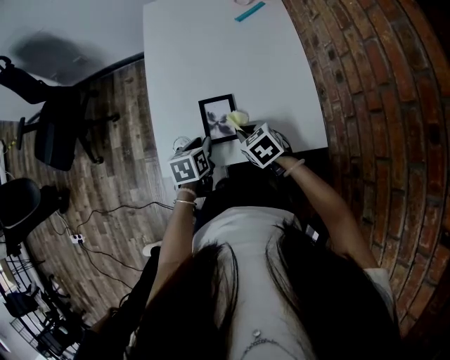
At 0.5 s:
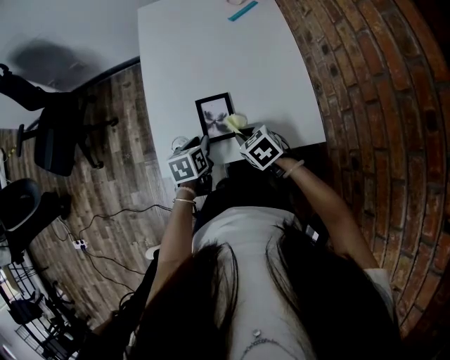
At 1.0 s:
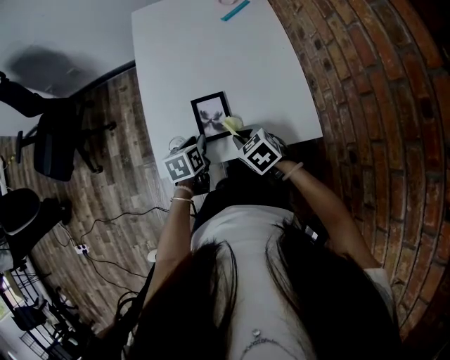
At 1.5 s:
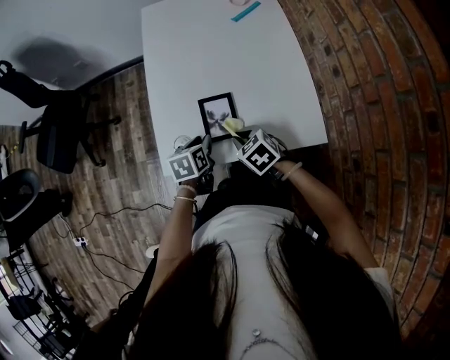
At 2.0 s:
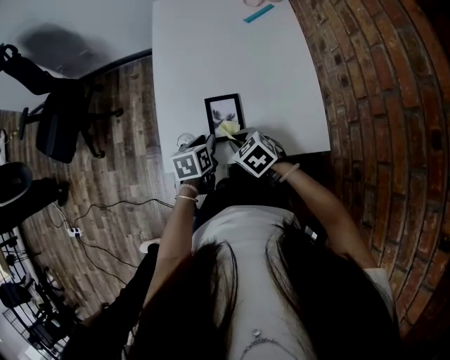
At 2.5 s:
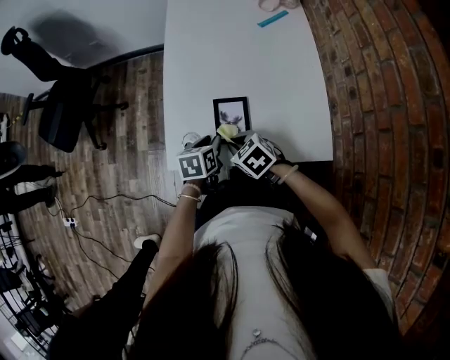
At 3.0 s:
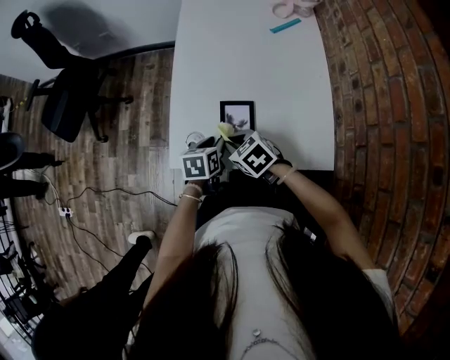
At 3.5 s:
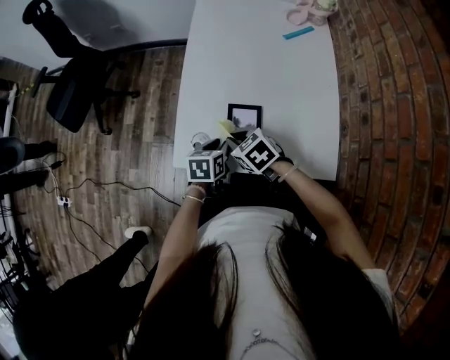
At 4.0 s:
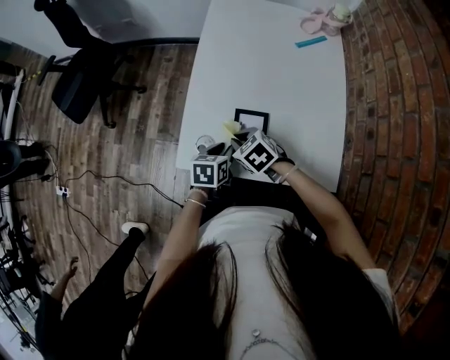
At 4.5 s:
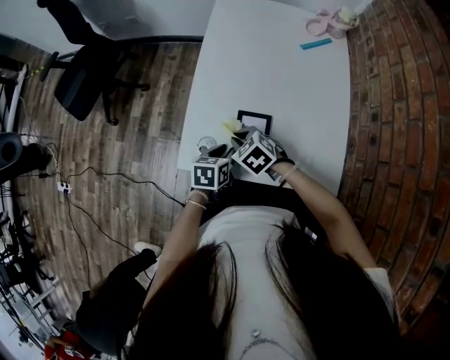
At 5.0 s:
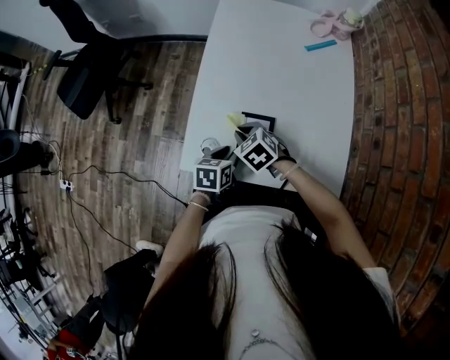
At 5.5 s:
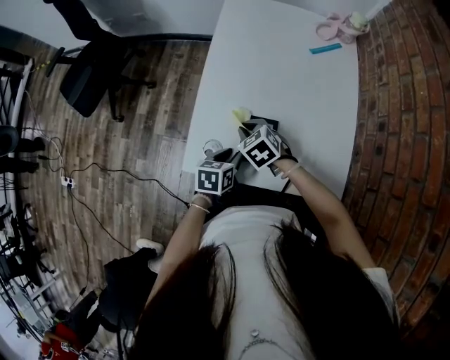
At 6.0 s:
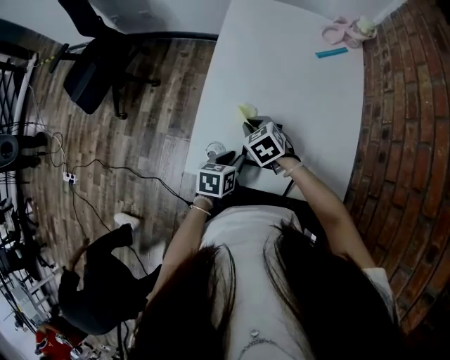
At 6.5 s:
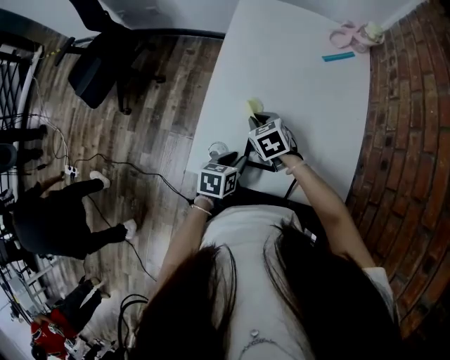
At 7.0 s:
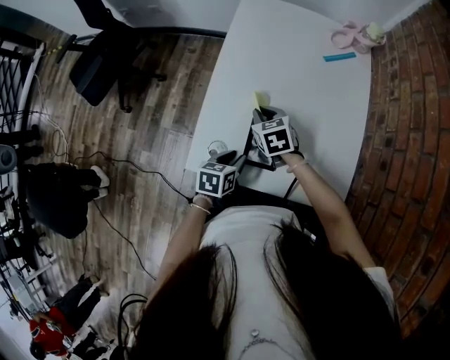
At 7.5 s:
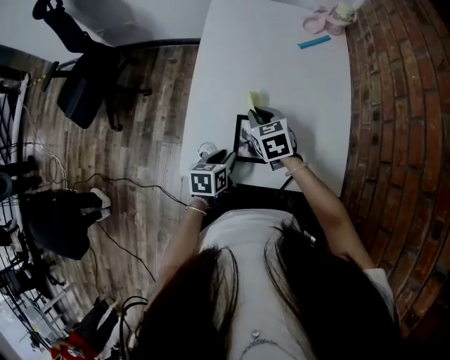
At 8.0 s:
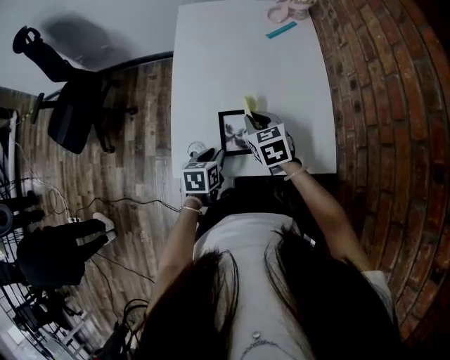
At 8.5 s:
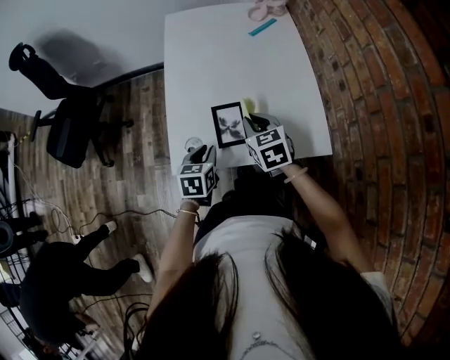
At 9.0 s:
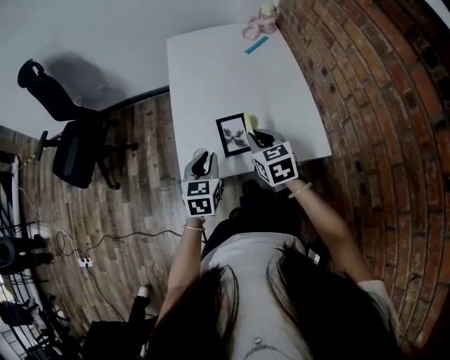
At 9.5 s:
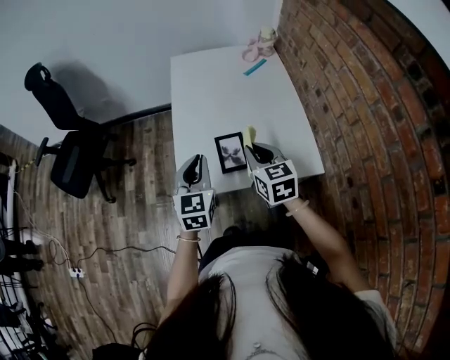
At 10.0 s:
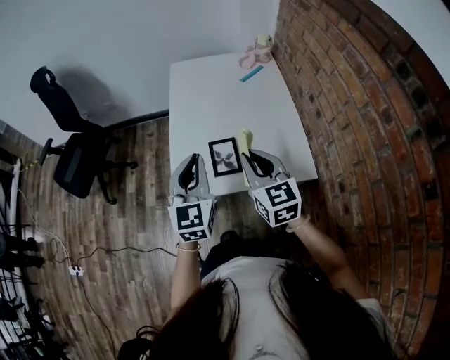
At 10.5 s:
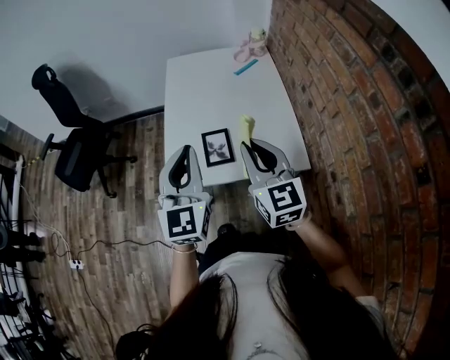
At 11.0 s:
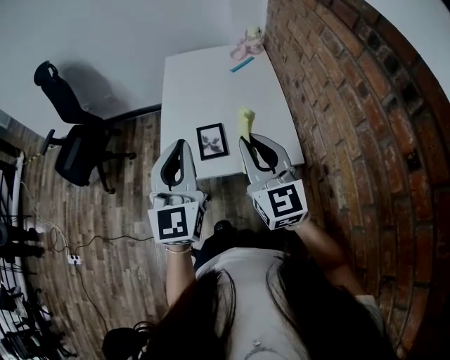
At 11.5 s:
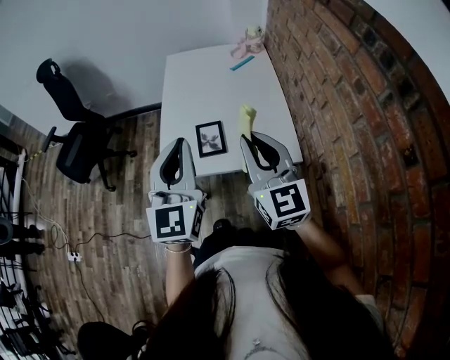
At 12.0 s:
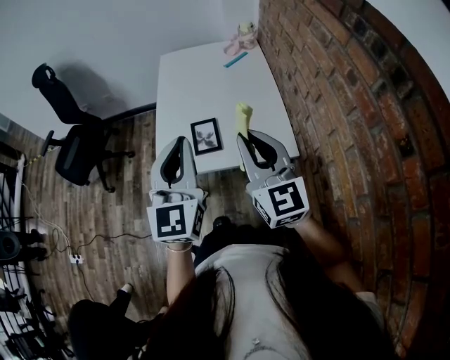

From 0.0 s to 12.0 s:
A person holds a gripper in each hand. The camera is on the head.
From 0.0 s to 2.0 s: There are only small adjustments of the grippers.
From 2.0 s to 4.0 s: The right gripper moves forward, about 5 cm.
From 4.0 s to 6.0 s: The right gripper shifts approximately 10 cm forward.
From 6.0 s to 8.0 s: The right gripper goes some 10 cm to the right and upward, and changes its angle by about 30 degrees.
From 8.0 s to 10.0 s: The right gripper shifts about 25 cm upward and backward, and turns by about 30 degrees. The left gripper shifts approximately 30 cm upward, points its fingers roughly 40 degrees further upward, and closes up.
From 10.0 s to 12.0 s: Both grippers travel together backward, upward and to the right, approximately 15 cm.

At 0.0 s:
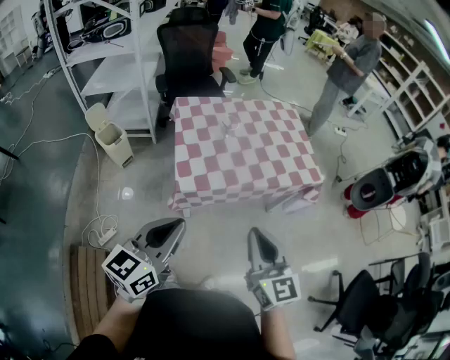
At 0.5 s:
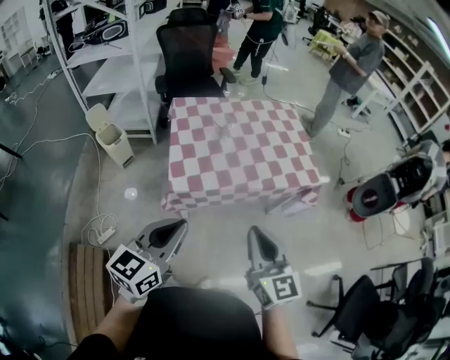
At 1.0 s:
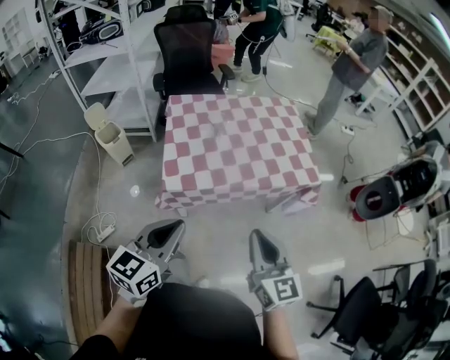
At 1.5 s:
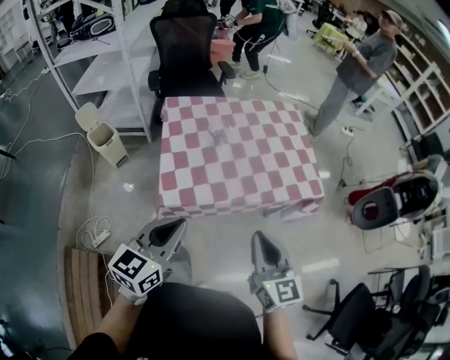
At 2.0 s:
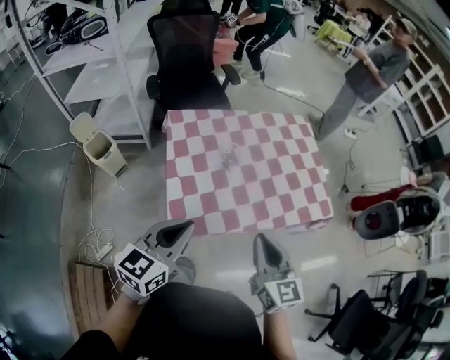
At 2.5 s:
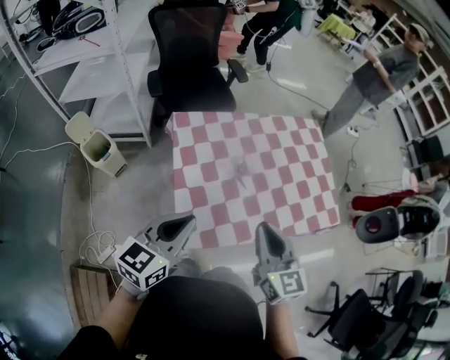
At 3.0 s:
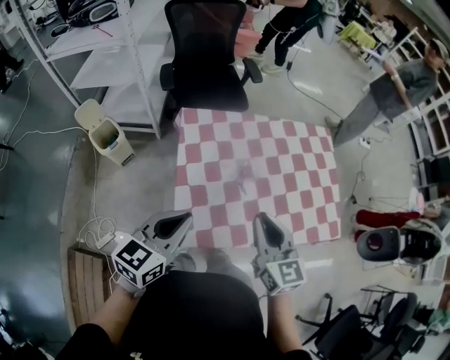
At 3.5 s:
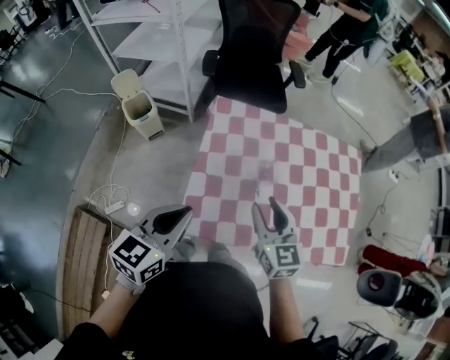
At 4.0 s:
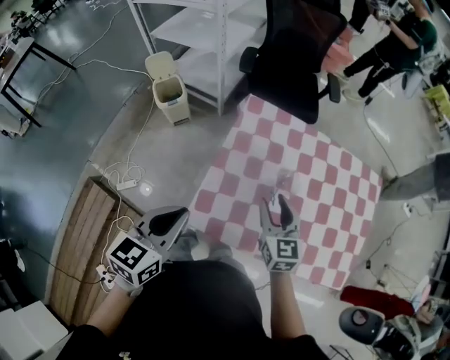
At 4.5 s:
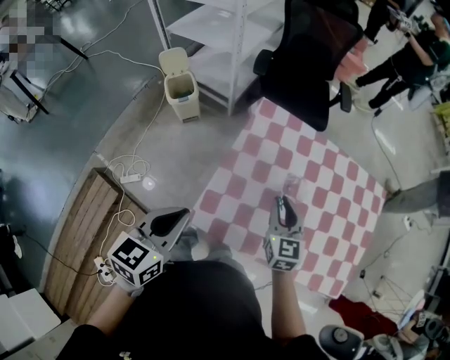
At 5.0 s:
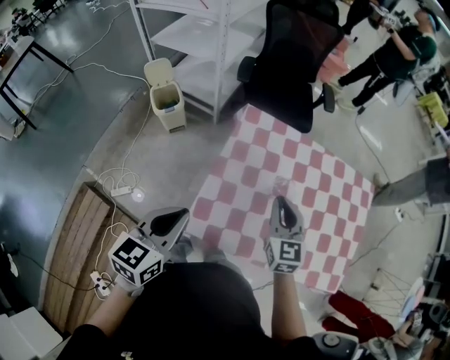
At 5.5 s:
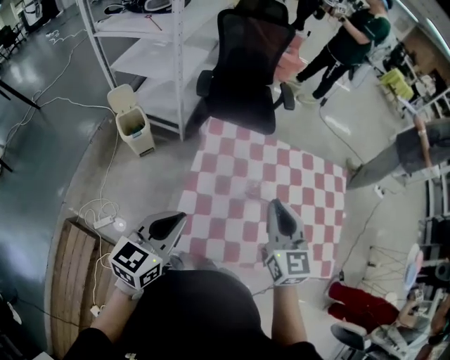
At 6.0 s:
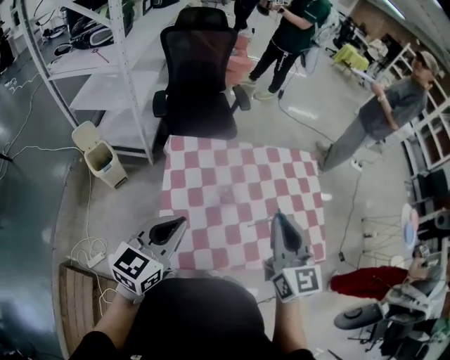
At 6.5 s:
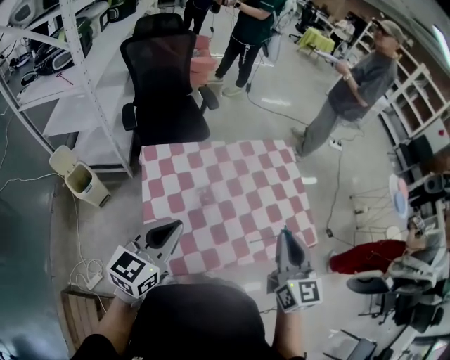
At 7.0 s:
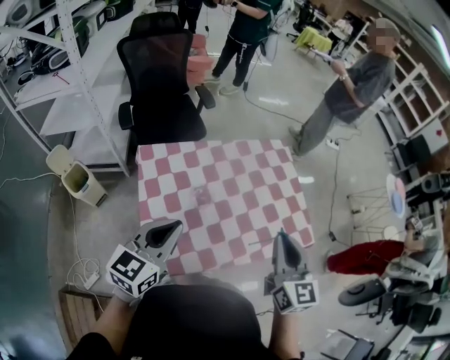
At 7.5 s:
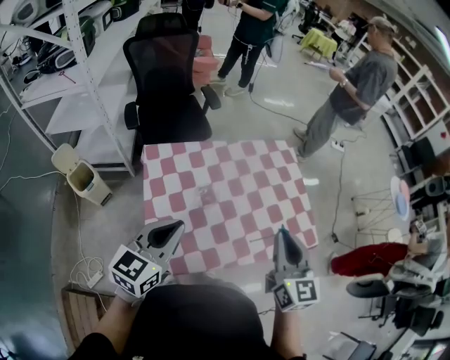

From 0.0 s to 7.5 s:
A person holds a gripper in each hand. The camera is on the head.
From 0.0 s to 2.0 s: Both grippers move forward, roughly 25 cm.
From 2.0 s to 4.0 s: The right gripper shifts by approximately 25 cm, turns by approximately 30 degrees, and opens up; the left gripper shifts by about 10 cm, and changes its angle by approximately 30 degrees.
From 4.0 s to 5.5 s: The right gripper is displaced upward by about 15 cm, and closes. Meanwhile the left gripper shifts by approximately 5 cm.
From 5.5 s to 7.5 s: The right gripper shifts by about 20 cm, and turns by about 30 degrees. Meanwhile the left gripper ends up roughly 10 cm from where it was, and changes its angle by some 20 degrees.

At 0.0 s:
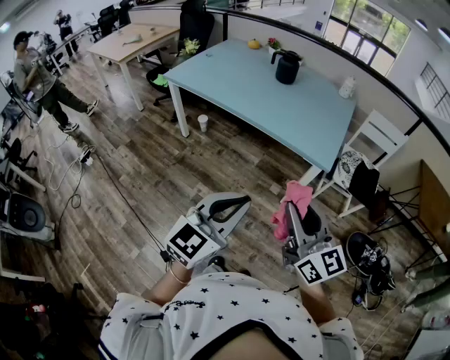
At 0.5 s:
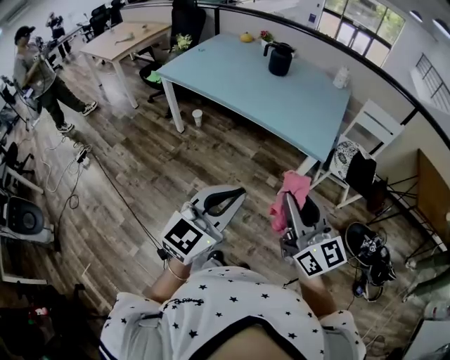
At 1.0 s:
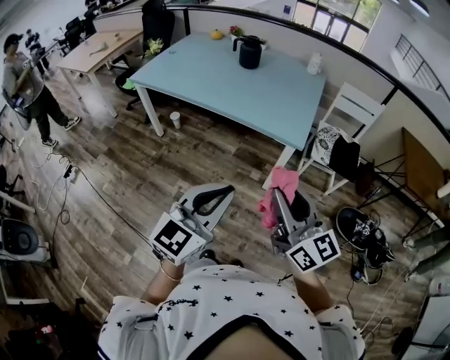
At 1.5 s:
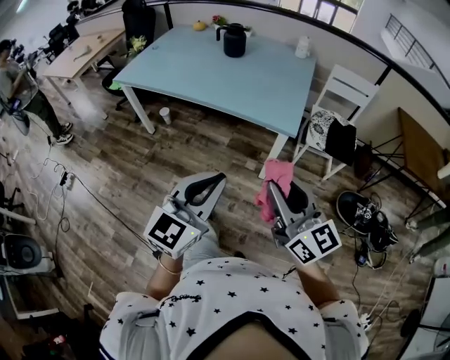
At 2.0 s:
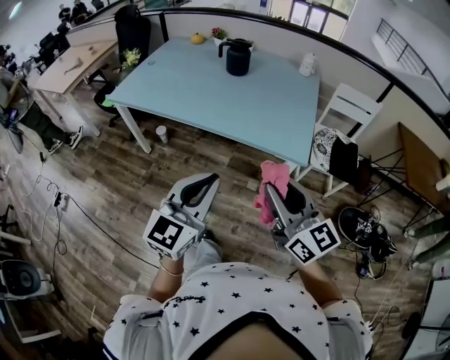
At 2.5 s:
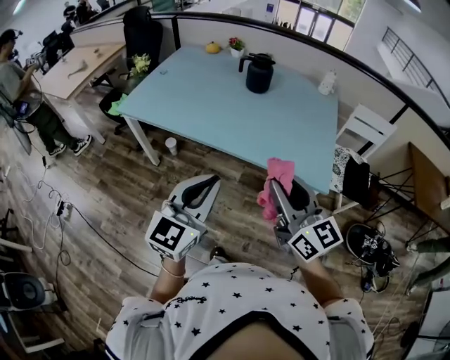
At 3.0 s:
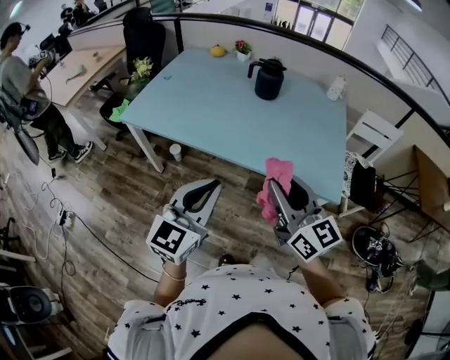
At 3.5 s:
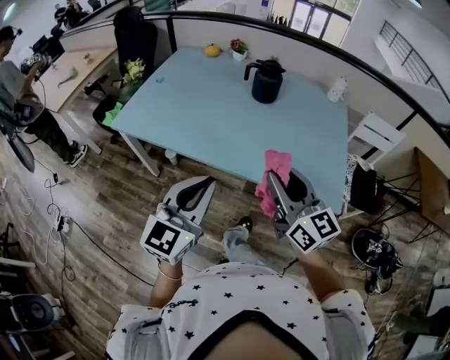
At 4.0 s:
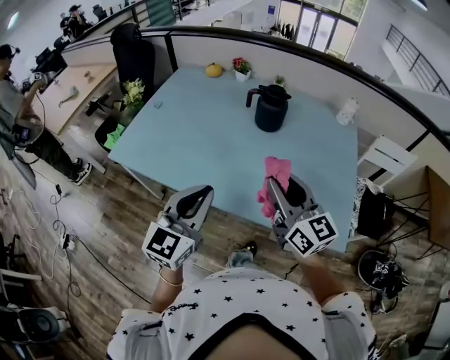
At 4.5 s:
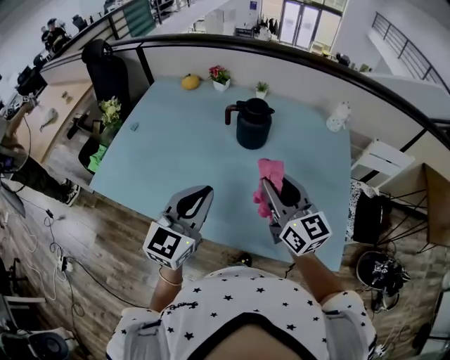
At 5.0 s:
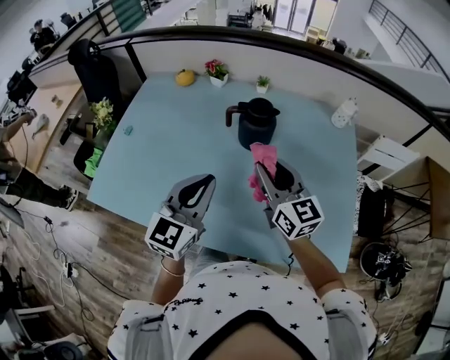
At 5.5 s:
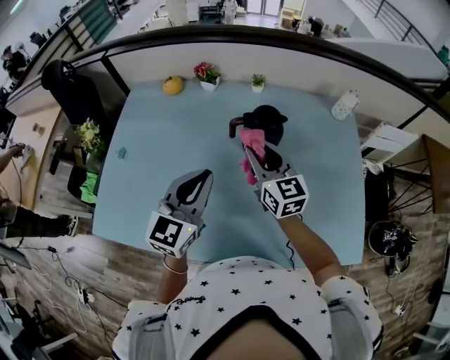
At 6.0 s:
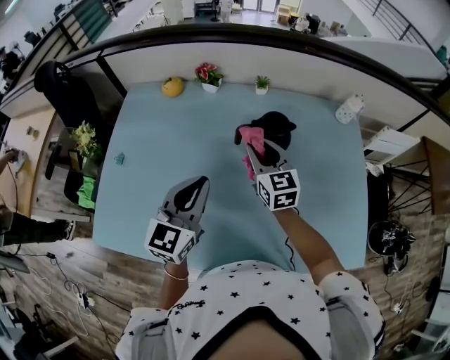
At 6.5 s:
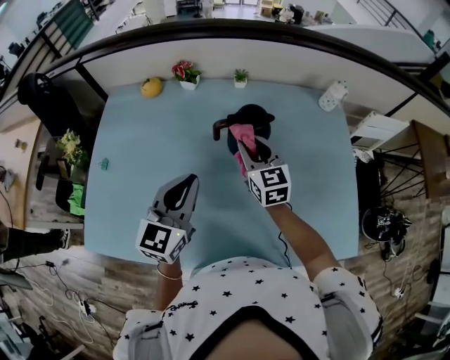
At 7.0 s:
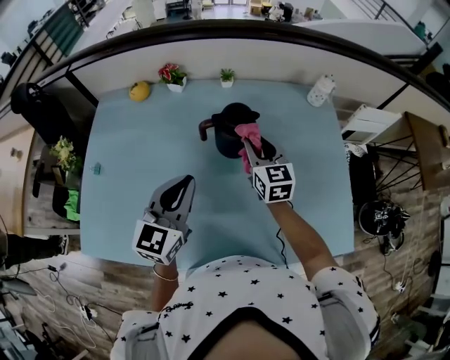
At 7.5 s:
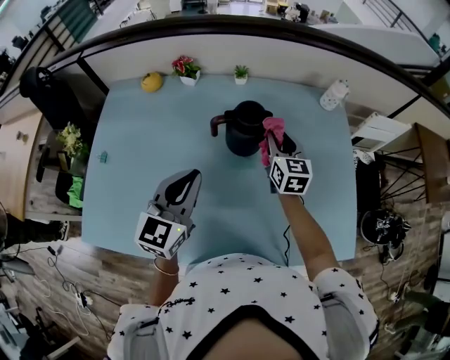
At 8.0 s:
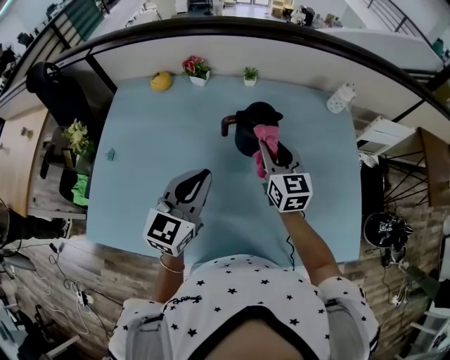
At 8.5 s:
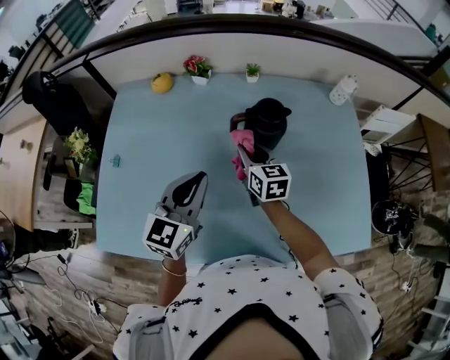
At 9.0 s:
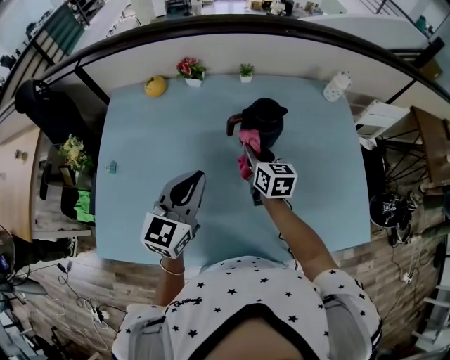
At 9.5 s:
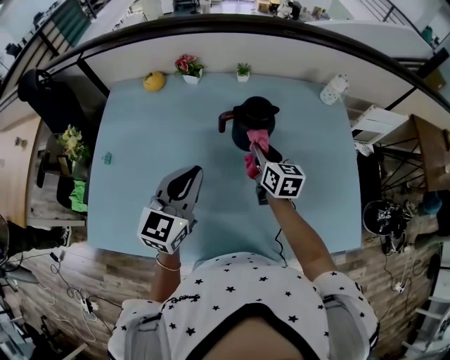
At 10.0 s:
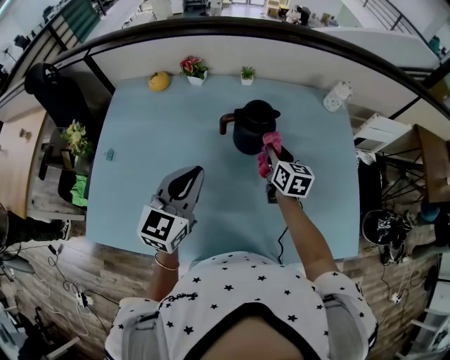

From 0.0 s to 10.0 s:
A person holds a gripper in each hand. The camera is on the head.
From 0.0 s to 2.0 s: Both grippers move forward, some 15 cm.
From 2.0 s to 4.0 s: The left gripper is displaced forward and to the left by roughly 40 cm. Meanwhile the right gripper moves forward, roughly 40 cm.
From 4.0 s to 6.0 s: The two grippers go approximately 35 cm forward. The right gripper changes its angle by some 30 degrees.
From 6.0 s to 8.0 s: The right gripper is displaced to the right by approximately 10 cm.
From 8.0 s to 10.0 s: The right gripper heads downward, covering about 10 cm, goes to the left and returns, roughly 10 cm each way, and rotates roughly 20 degrees.
